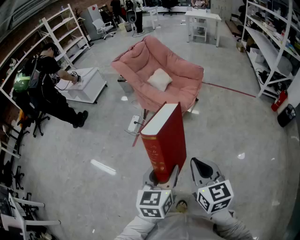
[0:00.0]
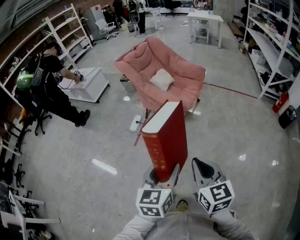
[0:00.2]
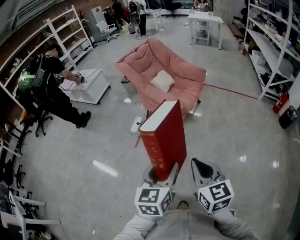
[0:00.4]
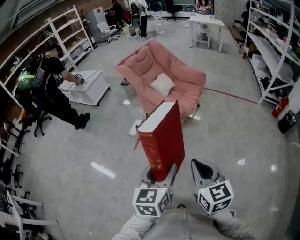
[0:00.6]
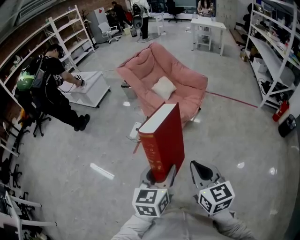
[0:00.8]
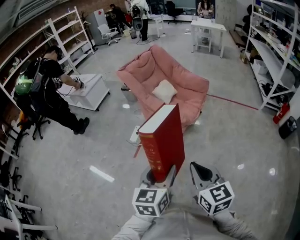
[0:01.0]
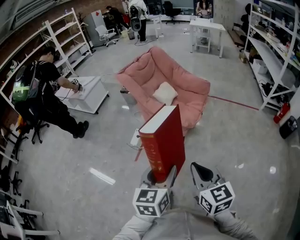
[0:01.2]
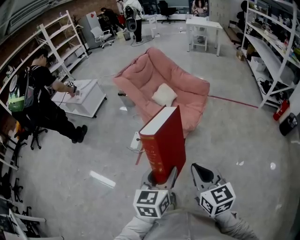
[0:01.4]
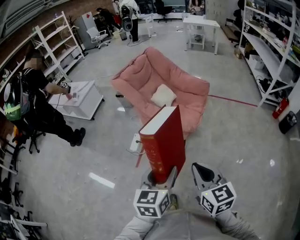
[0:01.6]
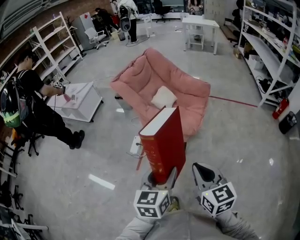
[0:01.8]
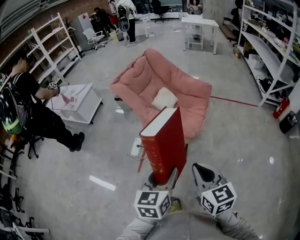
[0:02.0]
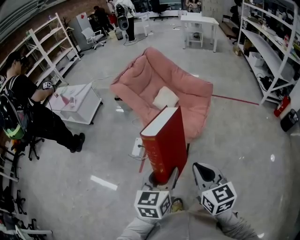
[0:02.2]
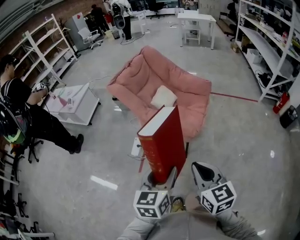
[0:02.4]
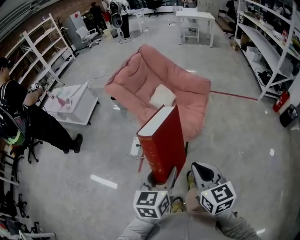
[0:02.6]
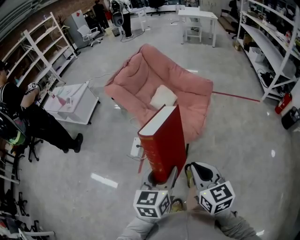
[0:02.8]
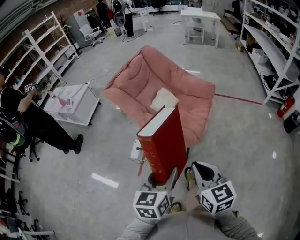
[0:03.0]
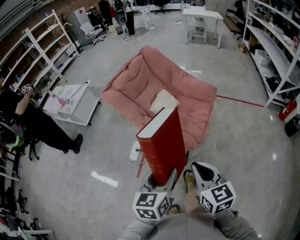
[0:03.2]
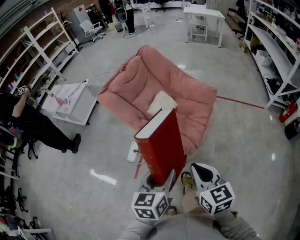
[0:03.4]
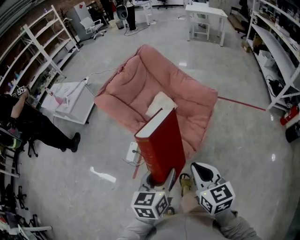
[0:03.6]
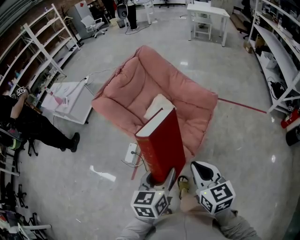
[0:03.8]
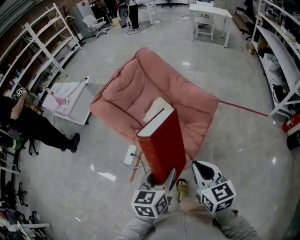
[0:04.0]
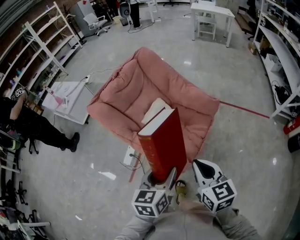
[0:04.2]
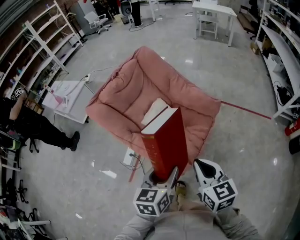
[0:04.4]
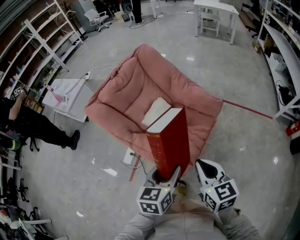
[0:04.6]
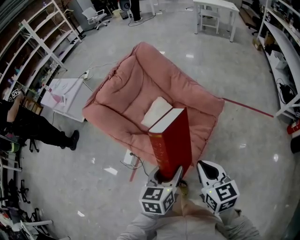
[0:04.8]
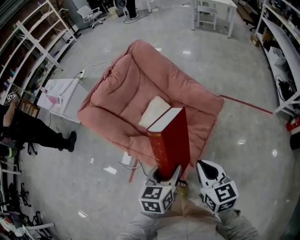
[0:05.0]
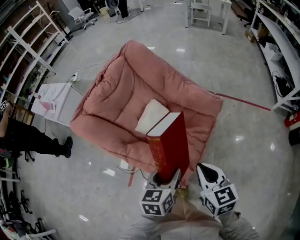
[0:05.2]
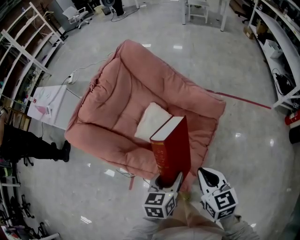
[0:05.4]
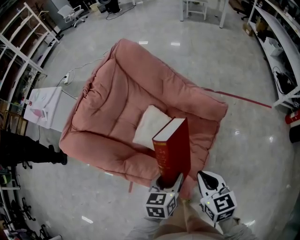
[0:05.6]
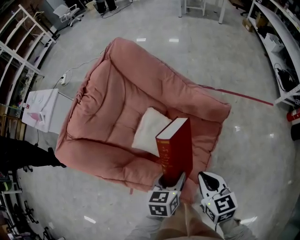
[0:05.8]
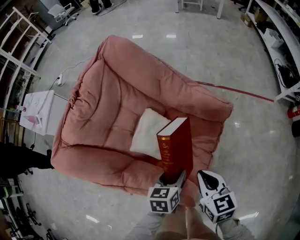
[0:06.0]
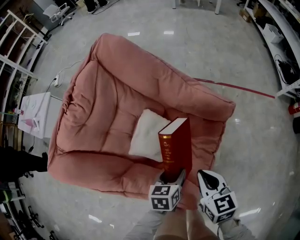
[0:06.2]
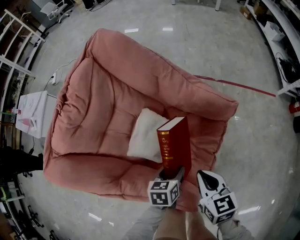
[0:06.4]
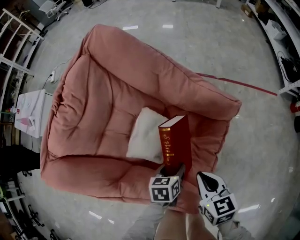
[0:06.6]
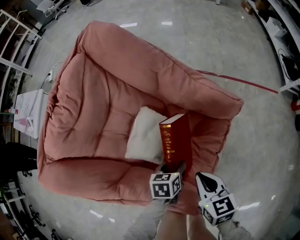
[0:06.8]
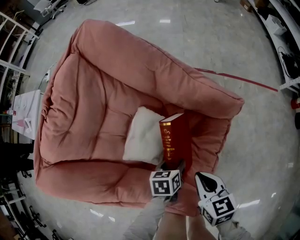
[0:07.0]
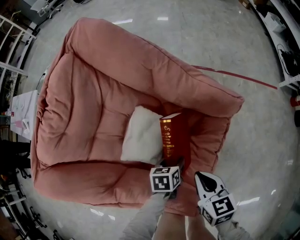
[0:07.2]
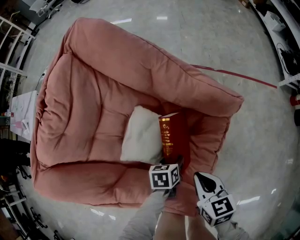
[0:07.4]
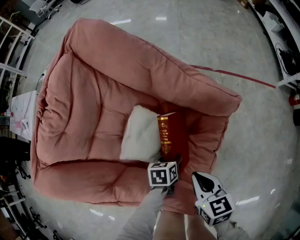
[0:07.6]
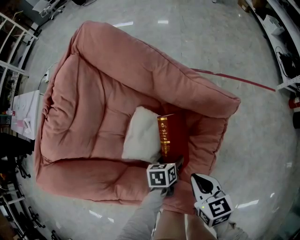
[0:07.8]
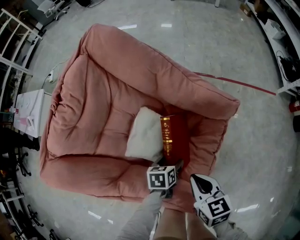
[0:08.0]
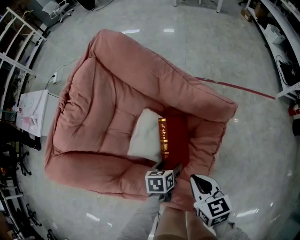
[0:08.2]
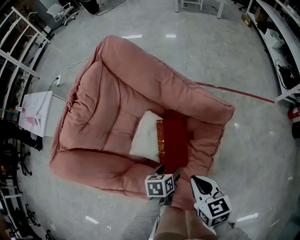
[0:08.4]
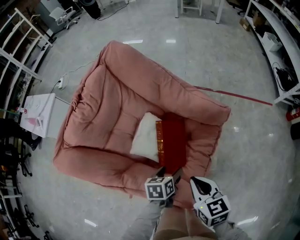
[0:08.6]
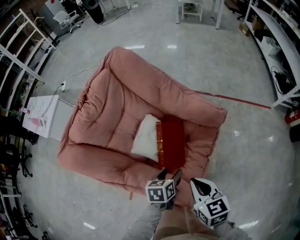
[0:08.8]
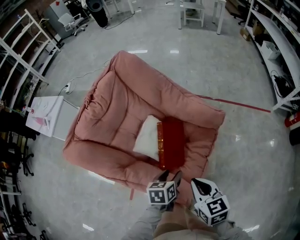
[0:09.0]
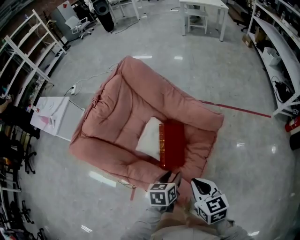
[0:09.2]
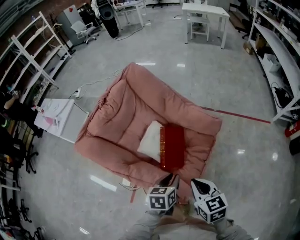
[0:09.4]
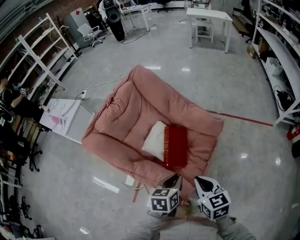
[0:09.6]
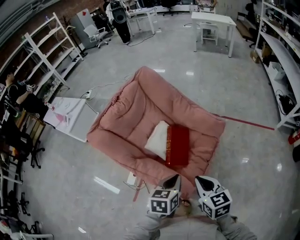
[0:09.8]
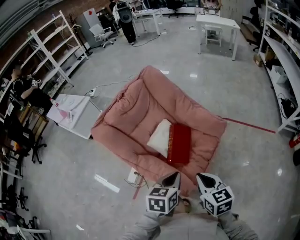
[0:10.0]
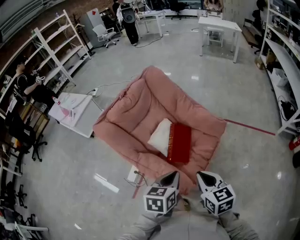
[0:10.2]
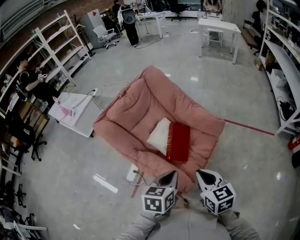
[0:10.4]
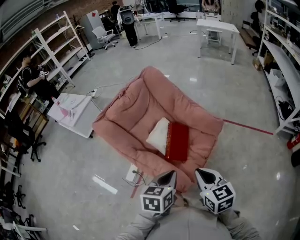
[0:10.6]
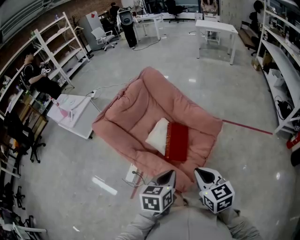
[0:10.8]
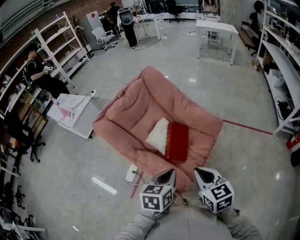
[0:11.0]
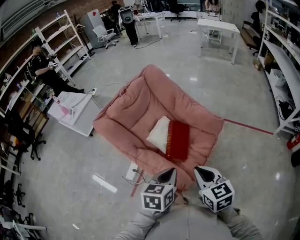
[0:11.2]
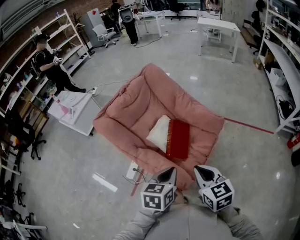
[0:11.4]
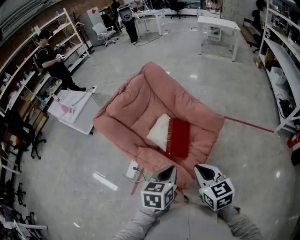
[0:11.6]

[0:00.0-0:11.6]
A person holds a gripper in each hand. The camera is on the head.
0:00.0 to 0:01.4: The grippers both shift forward and to the left by roughly 15 cm.
0:01.4 to 0:02.8: The two grippers go some 15 cm forward.
0:02.8 to 0:04.4: Both grippers move forward and to the right, approximately 30 cm.
0:04.4 to 0:05.8: The two grippers go roughly 20 cm forward and downward.
0:05.8 to 0:07.2: The right gripper goes about 15 cm downward and forward; the left gripper moves downward and forward, about 20 cm.
0:07.2 to 0:08.8: The grippers both shift upward and backward by roughly 15 cm.
0:08.8 to 0:10.2: The right gripper shifts roughly 15 cm upward and backward. Meanwhile the left gripper goes approximately 25 cm upward and backward, turns by about 20 degrees, and closes up.
0:10.2 to 0:11.6: There are only small adjustments of the grippers.

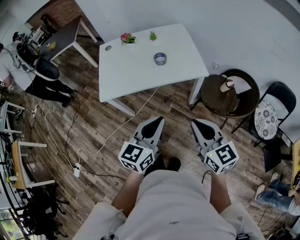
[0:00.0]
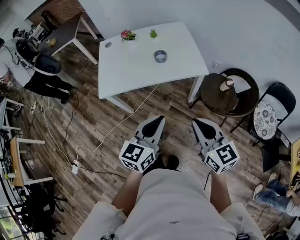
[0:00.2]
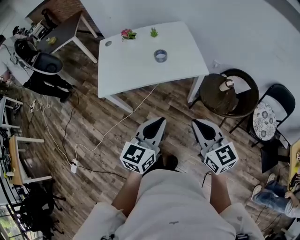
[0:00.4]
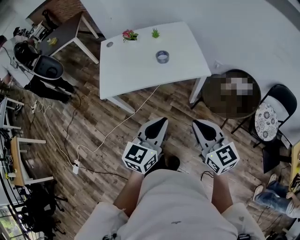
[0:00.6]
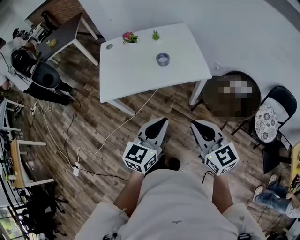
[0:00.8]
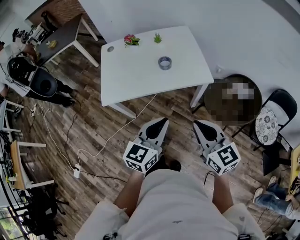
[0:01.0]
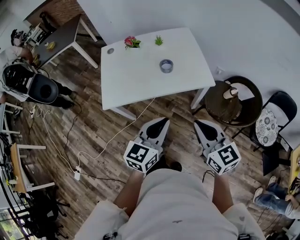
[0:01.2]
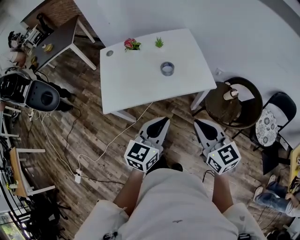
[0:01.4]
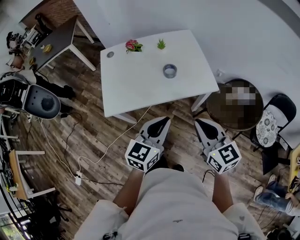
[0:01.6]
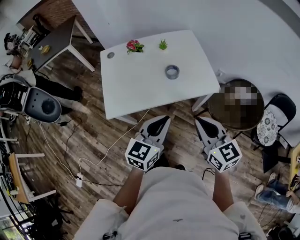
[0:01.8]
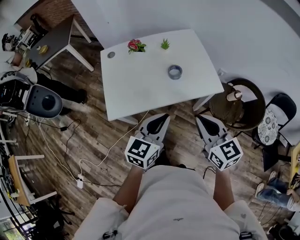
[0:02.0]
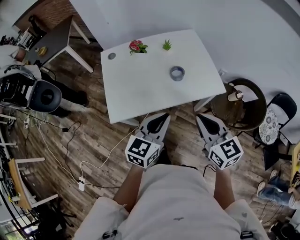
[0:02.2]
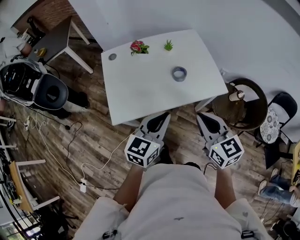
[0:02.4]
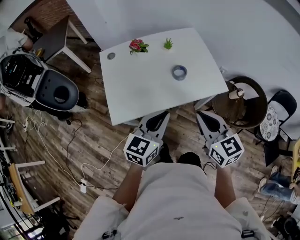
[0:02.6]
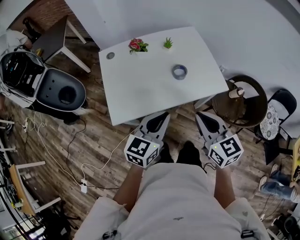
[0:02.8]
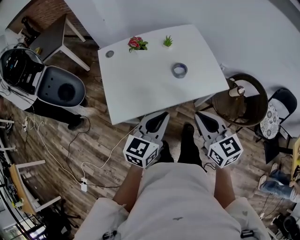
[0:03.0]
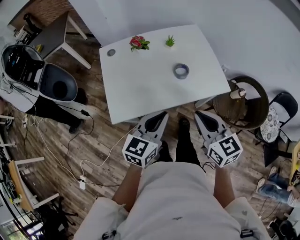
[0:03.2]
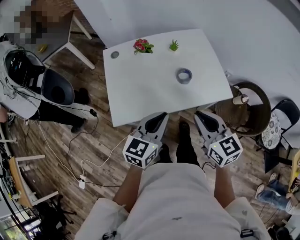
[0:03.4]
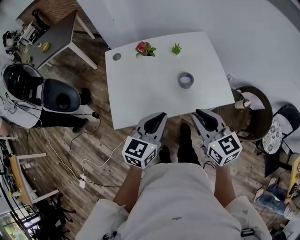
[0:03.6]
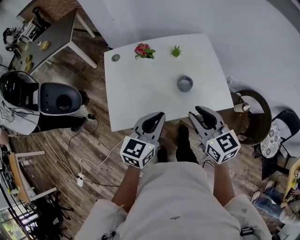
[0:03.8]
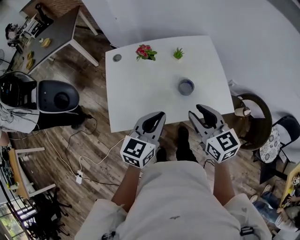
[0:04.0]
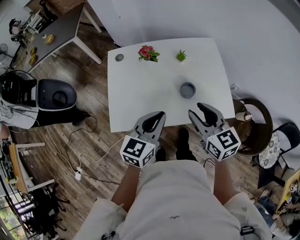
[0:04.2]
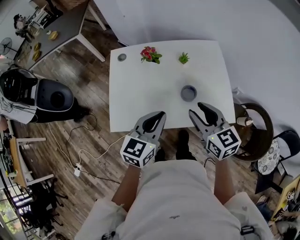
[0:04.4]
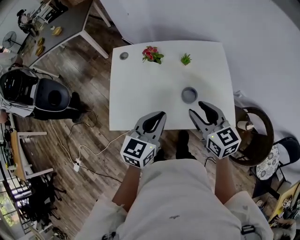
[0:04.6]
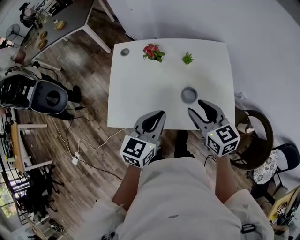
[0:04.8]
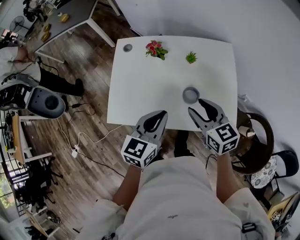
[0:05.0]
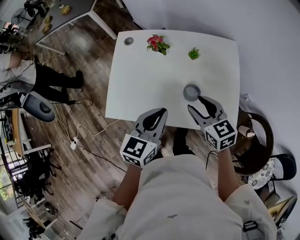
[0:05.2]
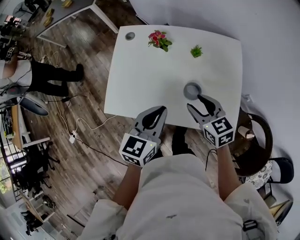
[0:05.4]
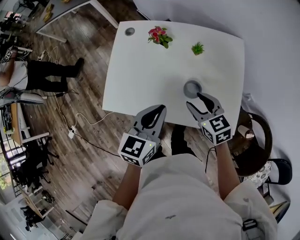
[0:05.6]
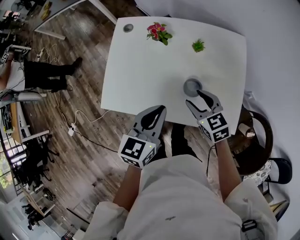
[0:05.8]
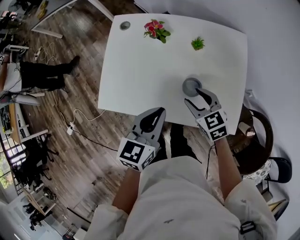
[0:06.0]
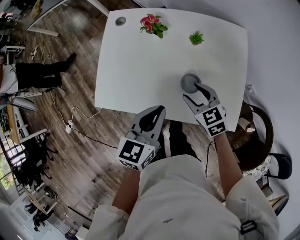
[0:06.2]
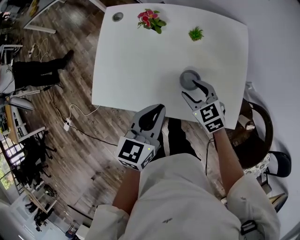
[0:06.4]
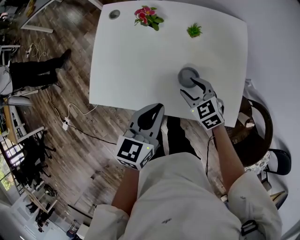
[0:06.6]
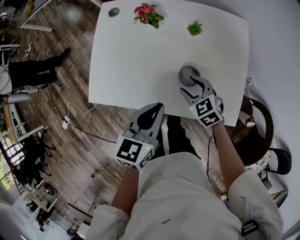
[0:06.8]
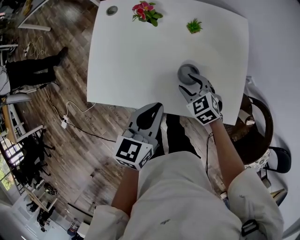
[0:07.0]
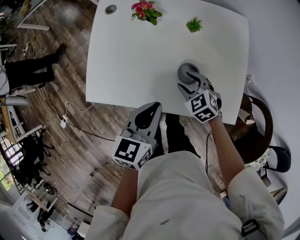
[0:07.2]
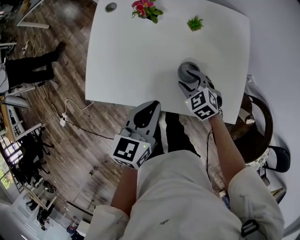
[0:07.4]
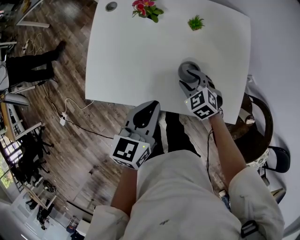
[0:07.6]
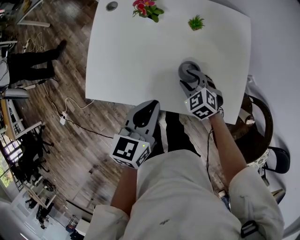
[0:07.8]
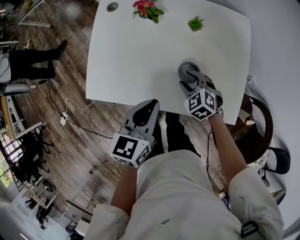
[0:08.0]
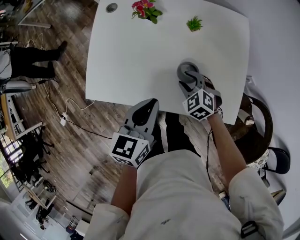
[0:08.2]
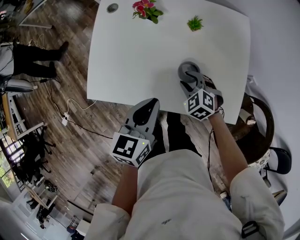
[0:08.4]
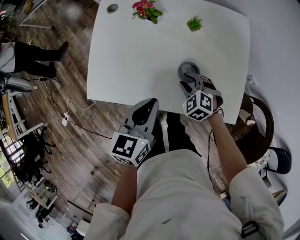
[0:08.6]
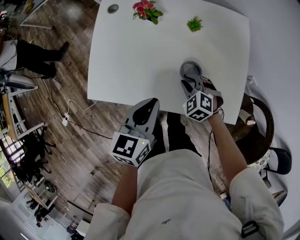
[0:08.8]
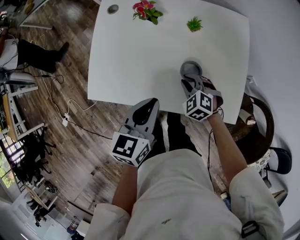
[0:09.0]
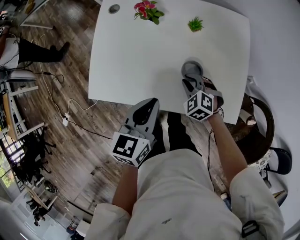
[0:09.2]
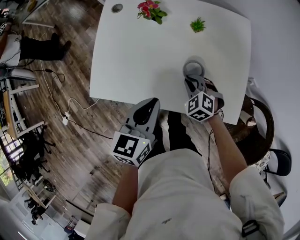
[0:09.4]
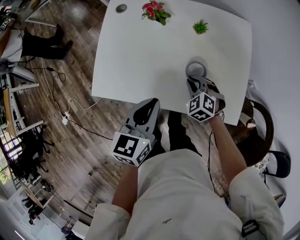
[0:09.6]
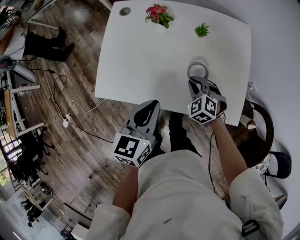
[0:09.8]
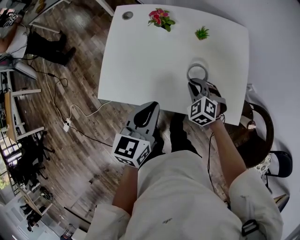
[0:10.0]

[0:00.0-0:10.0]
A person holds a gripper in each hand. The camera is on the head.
0:00.0 to 0:01.4: The right gripper shifts roughly 10 cm forward and to the left; the left gripper travels forward by roughly 10 cm.
0:01.4 to 0:02.8: Both grippers travel together to the left and forward, some 15 cm.
0:02.8 to 0:04.2: Both grippers travel together forward, approximately 15 cm. The right gripper opens up.
0:04.2 to 0:05.8: The right gripper travels downward and forward by roughly 15 cm, and rotates approximately 30 degrees. Meanwhile the left gripper changes place by approximately 5 cm, and changes its angle by approximately 20 degrees.
0:05.8 to 0:07.2: The right gripper moves downward, roughly 10 cm; the left gripper is displaced downward by some 5 cm.
0:07.2 to 0:08.6: The grippers make only small movements.
0:08.6 to 0:10.0: The left gripper shifts by about 5 cm, while the right gripper closes.

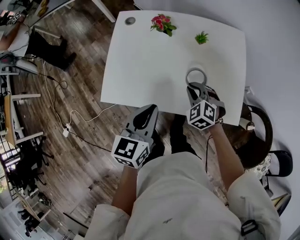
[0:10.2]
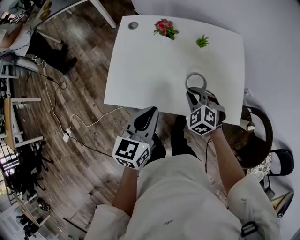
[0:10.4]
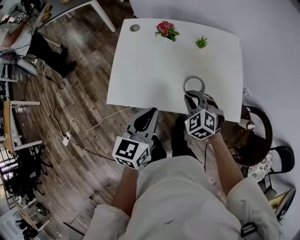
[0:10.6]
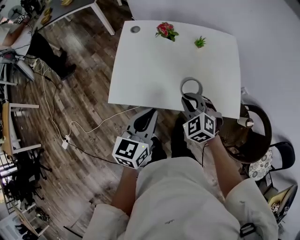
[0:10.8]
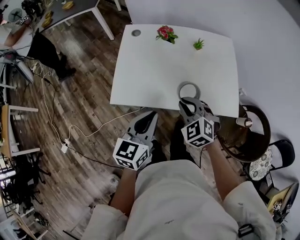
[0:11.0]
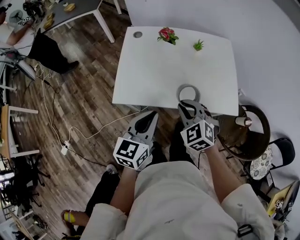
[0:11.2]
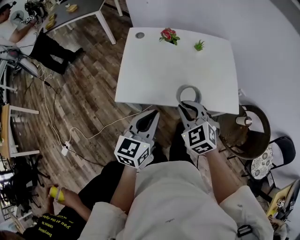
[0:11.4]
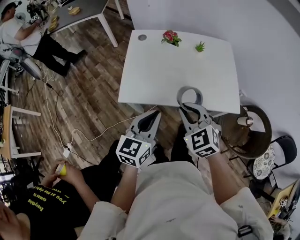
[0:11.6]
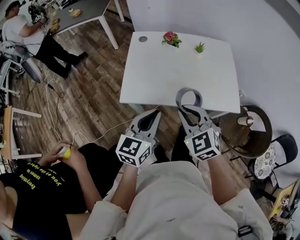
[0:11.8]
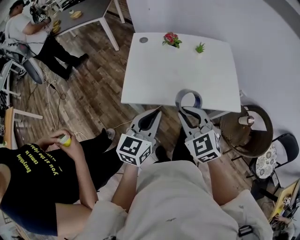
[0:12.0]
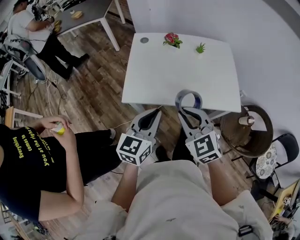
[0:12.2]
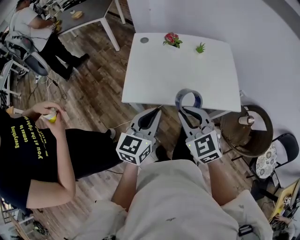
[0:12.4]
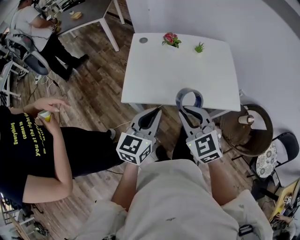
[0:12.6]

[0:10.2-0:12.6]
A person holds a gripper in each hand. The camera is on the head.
0:10.2 to 0:11.4: The left gripper moves backward and to the left, approximately 15 cm; the right gripper shifts about 25 cm backward, upward and to the left.
0:11.4 to 0:12.6: The right gripper is displaced upward and backward by about 10 cm.
